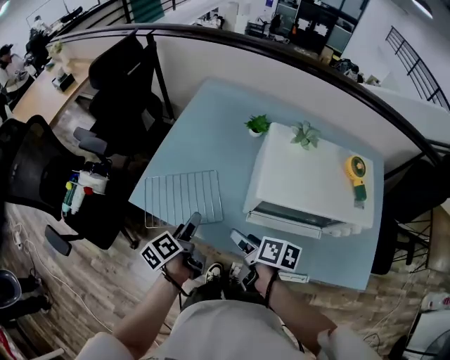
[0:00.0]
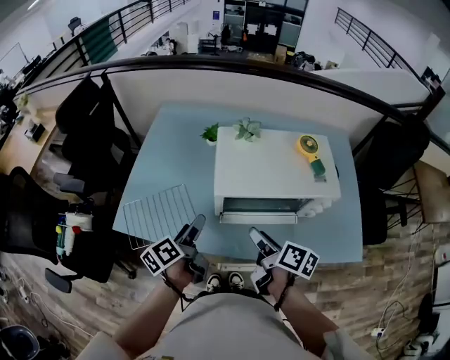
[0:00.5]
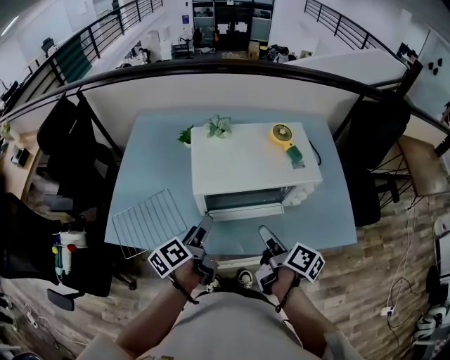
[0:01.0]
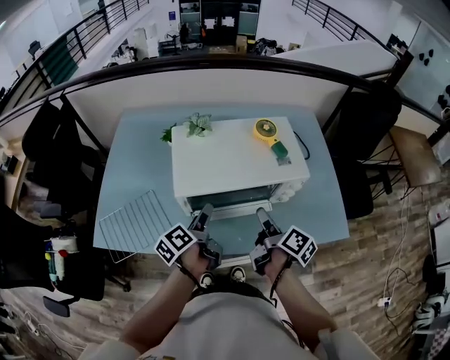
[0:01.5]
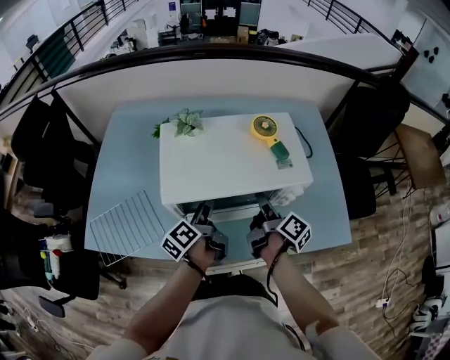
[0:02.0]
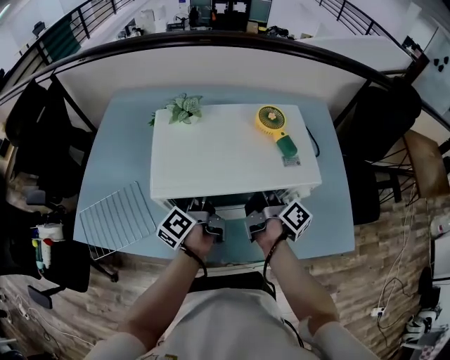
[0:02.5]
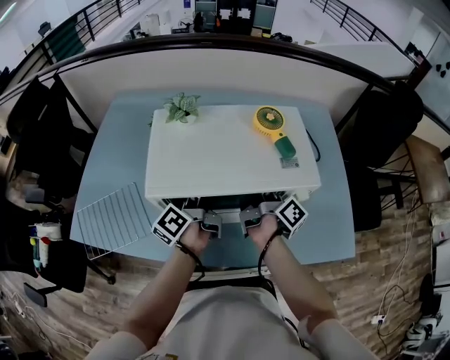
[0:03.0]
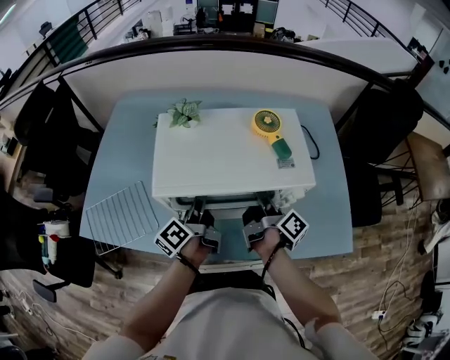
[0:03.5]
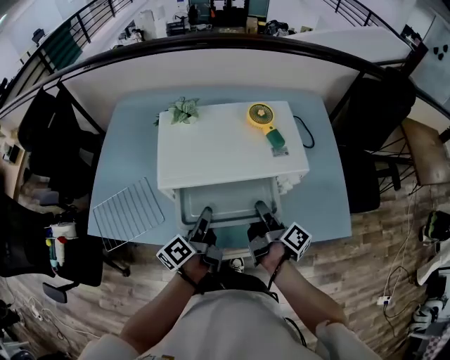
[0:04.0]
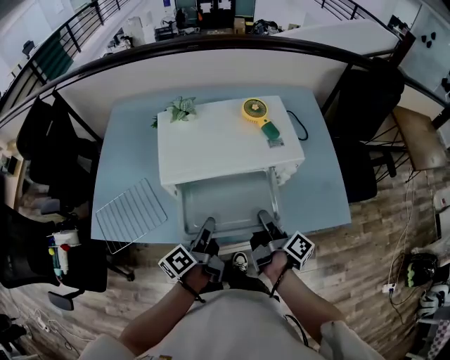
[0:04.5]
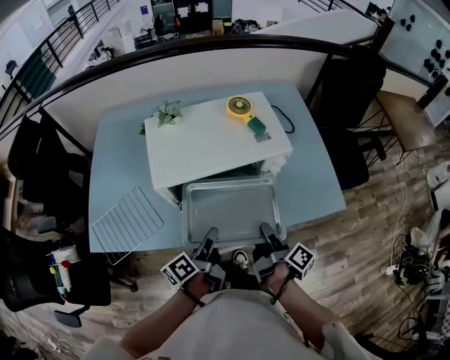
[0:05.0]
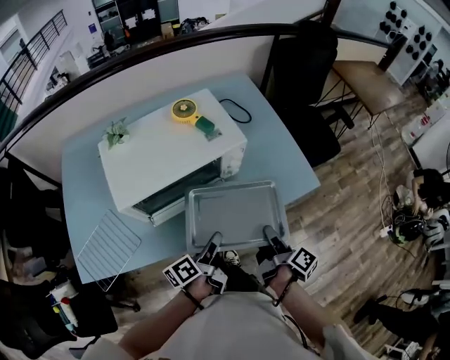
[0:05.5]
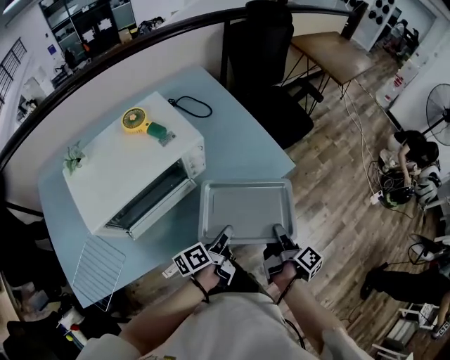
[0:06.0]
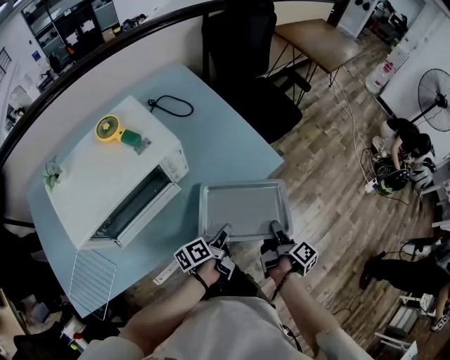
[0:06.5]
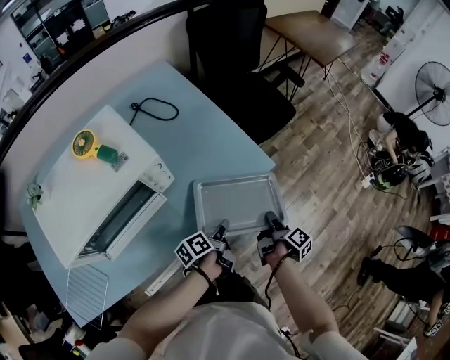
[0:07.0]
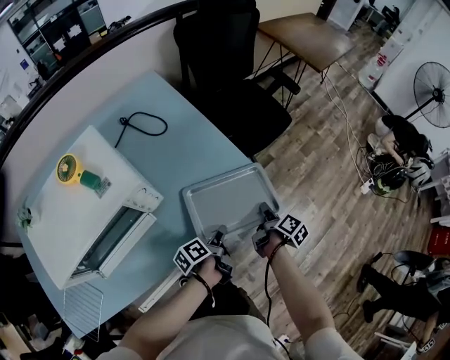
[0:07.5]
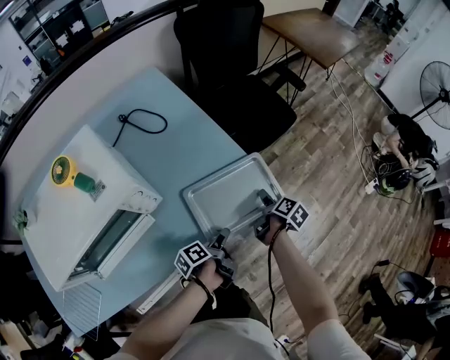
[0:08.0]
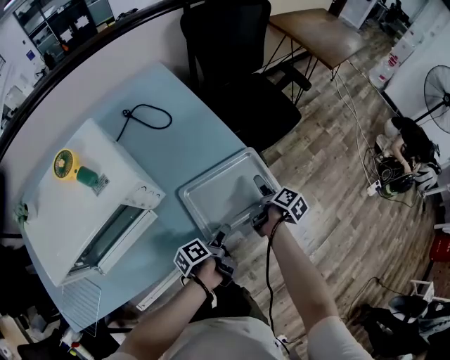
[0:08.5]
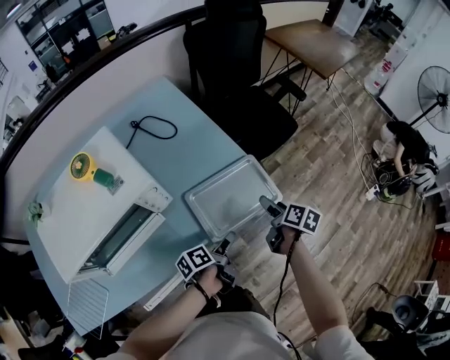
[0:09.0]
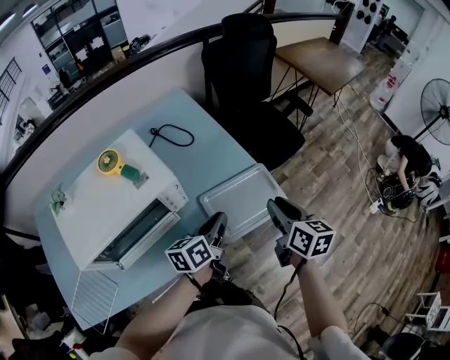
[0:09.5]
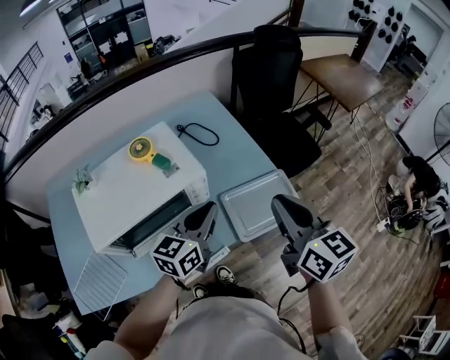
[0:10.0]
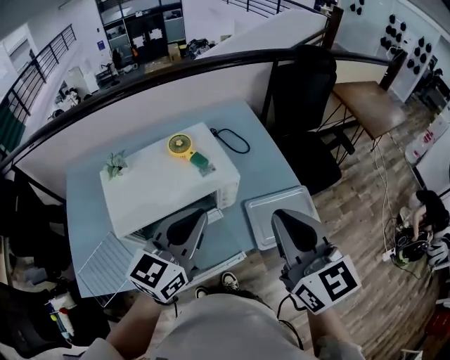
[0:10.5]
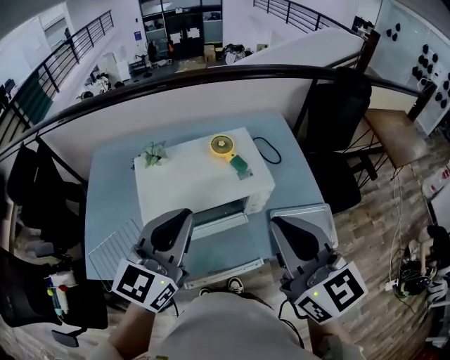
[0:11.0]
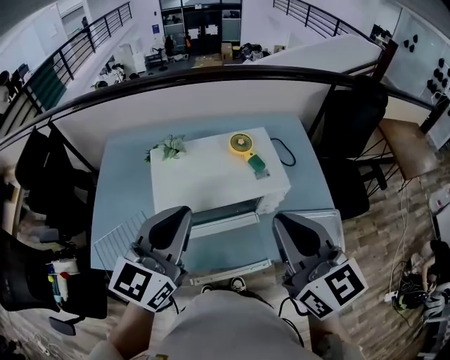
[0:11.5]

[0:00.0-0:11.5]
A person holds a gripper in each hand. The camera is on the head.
0:00.0 to 0:02.0: The left gripper goes upward and returns, some 10 cm each way, and turns by roughly 20 degrees. Meanwhile the right gripper reaches roughly 10 cm upward, then returns, and turns by some 50 degrees.
0:02.0 to 0:04.0: Both grippers move backward, about 5 cm. The left gripper closes its fingers.
0:04.0 to 0:06.0: The left gripper moves some 30 cm, and changes its angle by approximately 50 degrees. Meanwhile the right gripper changes place by approximately 35 cm, and turns by some 40 degrees.
0:06.0 to 0:07.5: The left gripper shifts about 20 cm forward, downward and to the right. The right gripper is displaced forward and downward by roughly 25 cm.
0:07.5 to 0:09.5: The left gripper heads upward and to the left, covering some 20 cm, twists approximately 40 degrees clockwise, seen from behind, and opens, then closes again, while the right gripper goes some 25 cm upward, twists some 50 degrees counterclockwise, seen from behind, and opens, then closes again.
0:09.5 to 0:11.5: The right gripper changes place by approximately 40 cm, and swivels roughly 50 degrees. Meanwhile the left gripper shifts by some 40 cm, and changes its angle by roughly 60 degrees.
